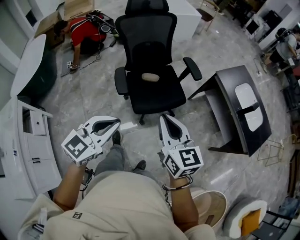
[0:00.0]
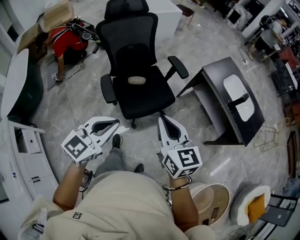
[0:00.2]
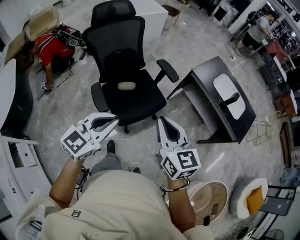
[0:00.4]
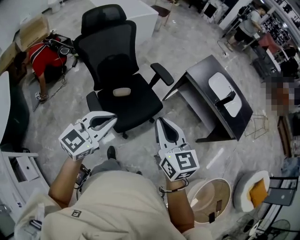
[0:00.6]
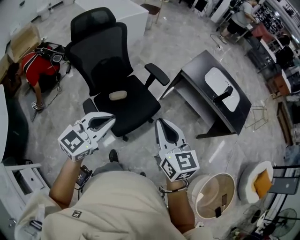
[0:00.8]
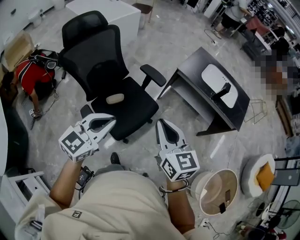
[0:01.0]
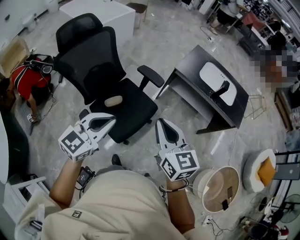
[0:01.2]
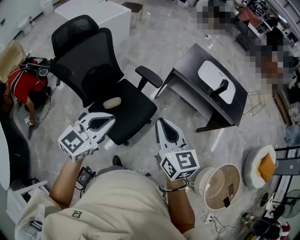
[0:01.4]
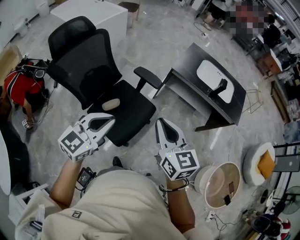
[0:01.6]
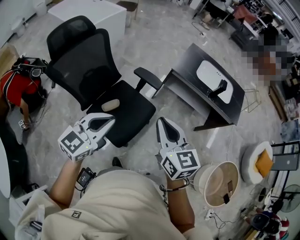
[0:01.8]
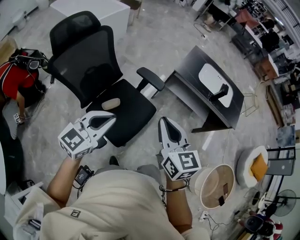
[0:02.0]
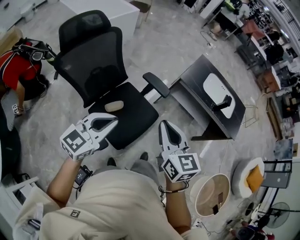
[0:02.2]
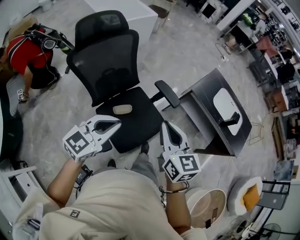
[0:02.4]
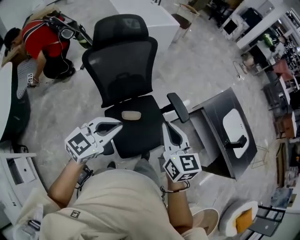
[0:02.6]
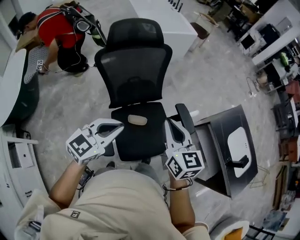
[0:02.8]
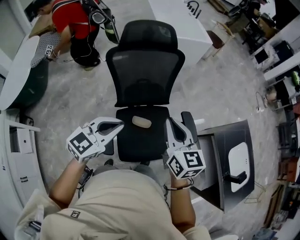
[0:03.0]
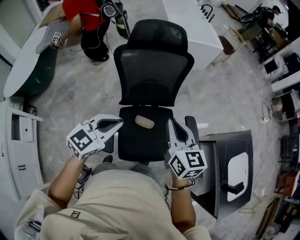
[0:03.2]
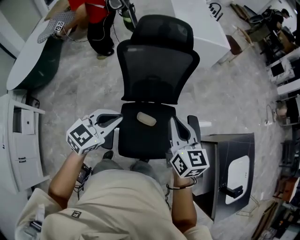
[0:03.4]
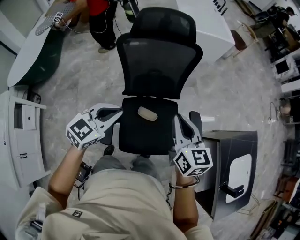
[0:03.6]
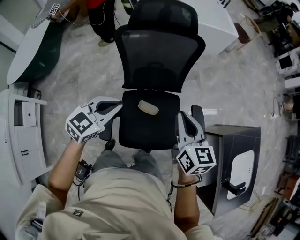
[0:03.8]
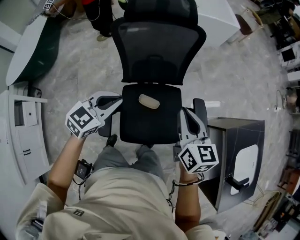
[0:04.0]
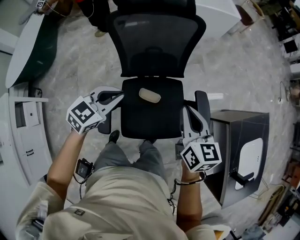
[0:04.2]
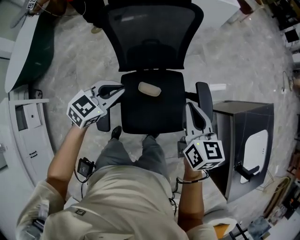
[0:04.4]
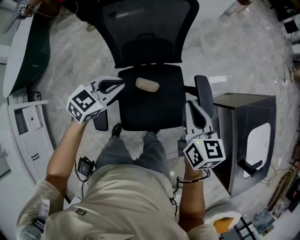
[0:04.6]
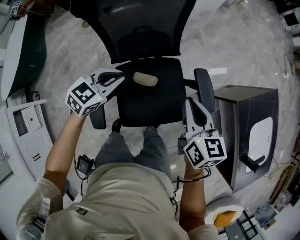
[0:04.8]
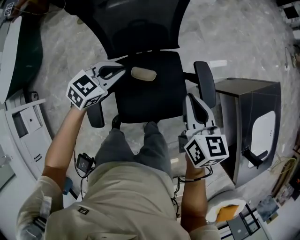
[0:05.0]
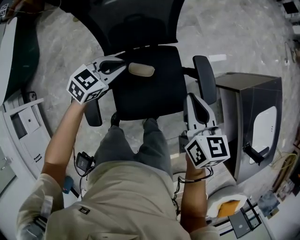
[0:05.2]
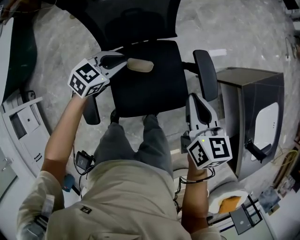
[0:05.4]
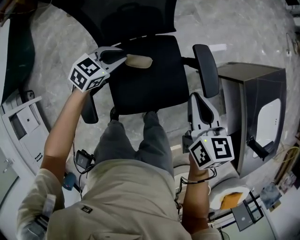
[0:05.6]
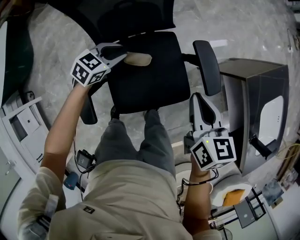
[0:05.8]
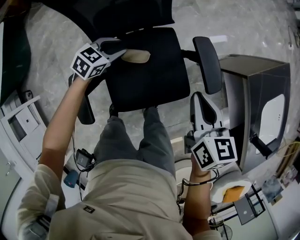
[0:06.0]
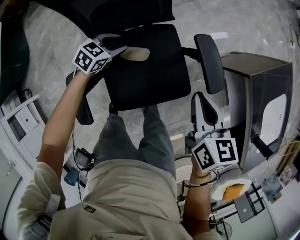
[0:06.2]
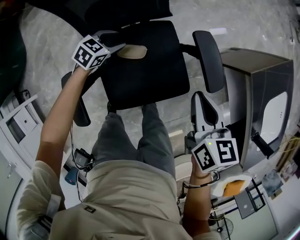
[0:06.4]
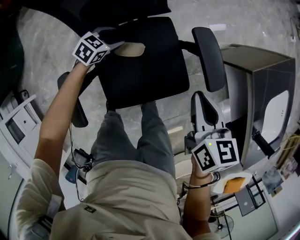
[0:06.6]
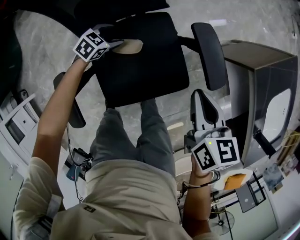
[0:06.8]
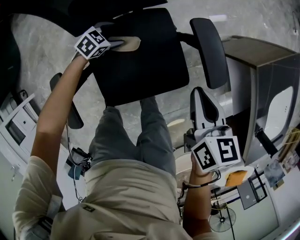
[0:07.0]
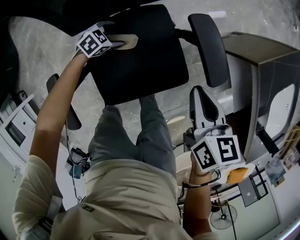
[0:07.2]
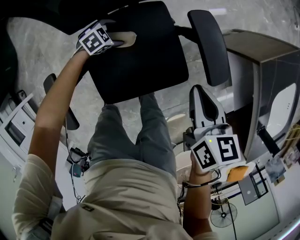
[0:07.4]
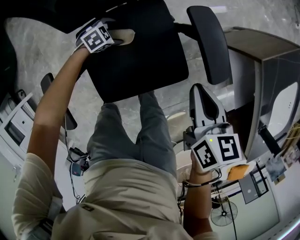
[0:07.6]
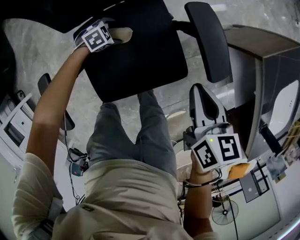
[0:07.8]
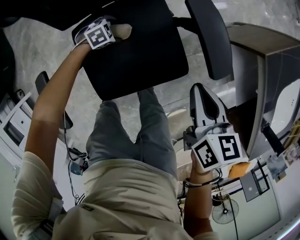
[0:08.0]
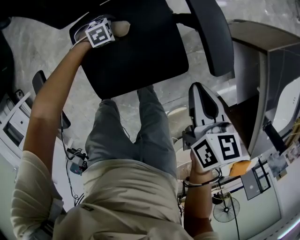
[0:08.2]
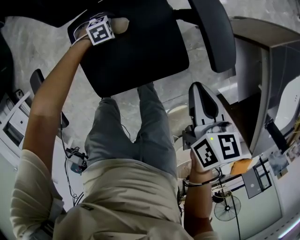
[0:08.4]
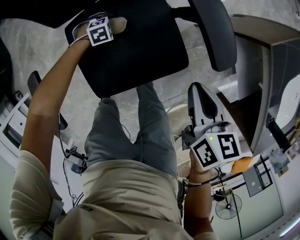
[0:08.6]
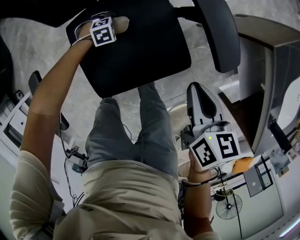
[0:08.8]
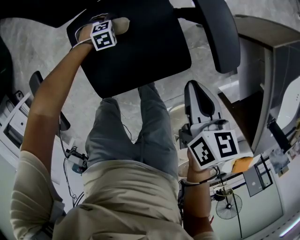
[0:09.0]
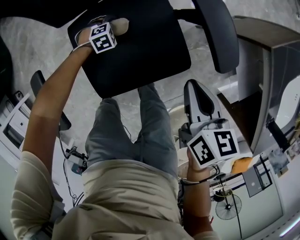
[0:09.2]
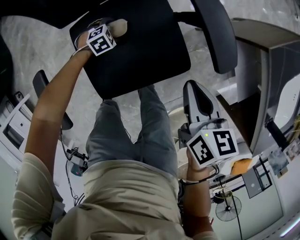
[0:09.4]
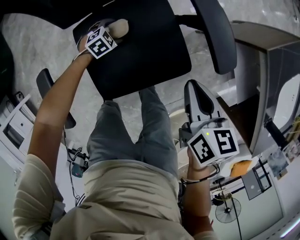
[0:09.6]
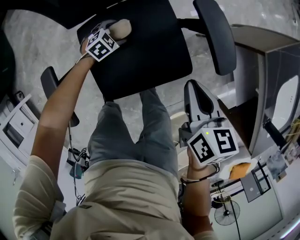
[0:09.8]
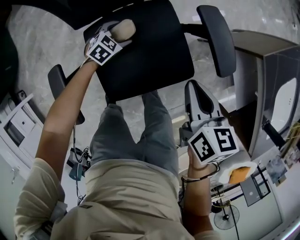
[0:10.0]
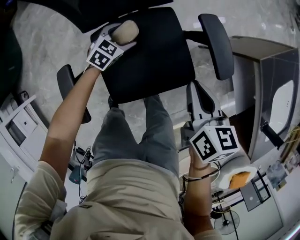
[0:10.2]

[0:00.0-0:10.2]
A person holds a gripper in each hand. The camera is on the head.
0:00.0 to 0:01.4: The right gripper shifts by about 15 cm, and rotates roughly 30 degrees; the left gripper changes place by some 25 cm, and turns by approximately 30 degrees.
0:01.4 to 0:03.0: The right gripper moves roughly 30 cm, and changes its angle by approximately 30 degrees. Meanwhile the left gripper changes place by about 20 cm, and swivels about 30 degrees.
0:03.0 to 0:04.4: The left gripper goes roughly 15 cm downward and forward, while the right gripper travels downward and to the right by some 15 cm.
0:04.4 to 0:05.8: The left gripper moves downward and forward, roughly 20 cm. Meanwhile the right gripper shifts roughly 15 cm downward and to the right.
0:05.8 to 0:07.2: The left gripper travels downward by roughly 20 cm, rotates roughly 20 degrees, and opens up. The right gripper shifts some 10 cm downward.
0:07.2 to 0:08.8: The left gripper goes approximately 10 cm downward, and turns by roughly 30 degrees; the right gripper heads downward, covering roughly 5 cm.
0:08.8 to 0:10.2: The left gripper shifts roughly 20 cm upward, and changes its angle by roughly 50 degrees, while the right gripper shifts about 10 cm upward.

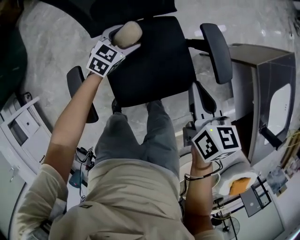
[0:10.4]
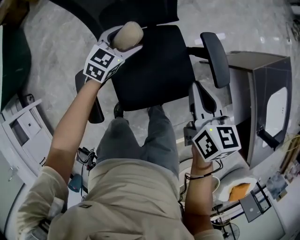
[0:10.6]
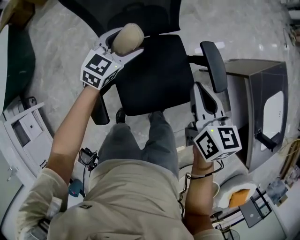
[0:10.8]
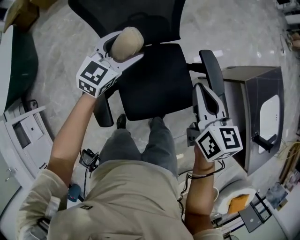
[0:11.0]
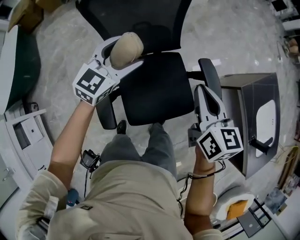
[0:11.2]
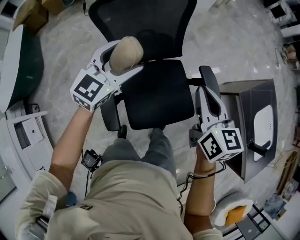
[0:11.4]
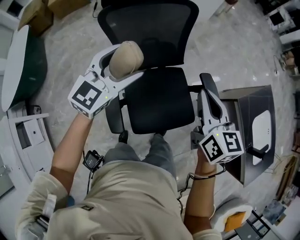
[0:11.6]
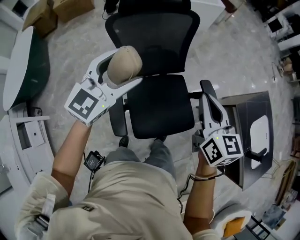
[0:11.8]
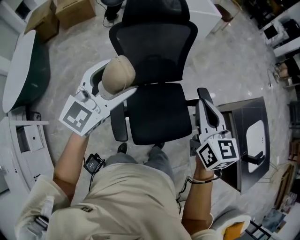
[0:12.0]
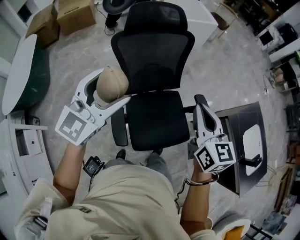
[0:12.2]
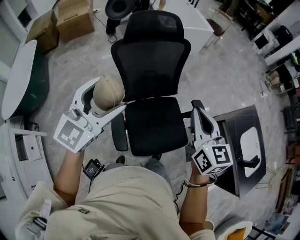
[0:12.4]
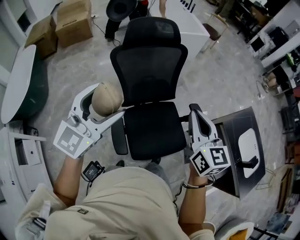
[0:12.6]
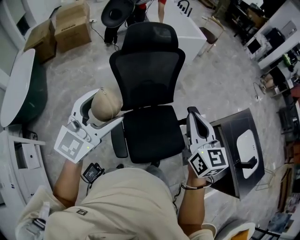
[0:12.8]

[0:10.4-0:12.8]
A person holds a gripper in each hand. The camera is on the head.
0:10.4 to 0:11.6: The right gripper travels upward and to the left by roughly 25 cm, and changes its angle by about 20 degrees. Meanwhile the left gripper travels upward by roughly 40 cm, and rotates roughly 30 degrees.
0:11.6 to 0:12.8: The left gripper heads backward, upward and to the left, covering about 20 cm; the right gripper moves upward, to the left and backward, approximately 15 cm.

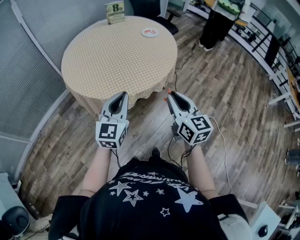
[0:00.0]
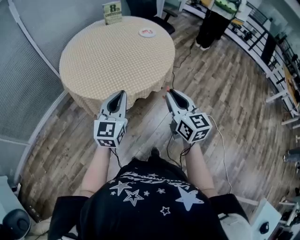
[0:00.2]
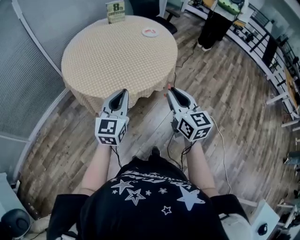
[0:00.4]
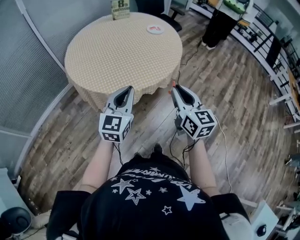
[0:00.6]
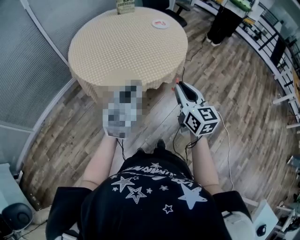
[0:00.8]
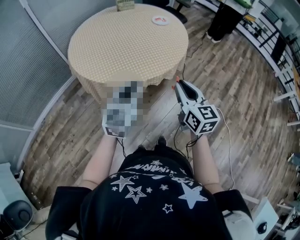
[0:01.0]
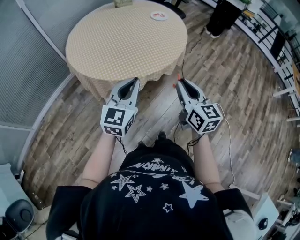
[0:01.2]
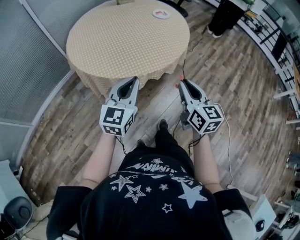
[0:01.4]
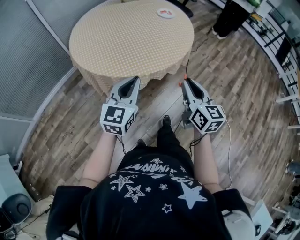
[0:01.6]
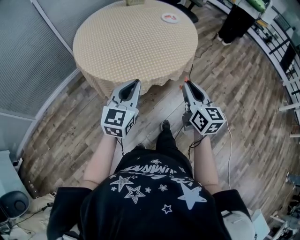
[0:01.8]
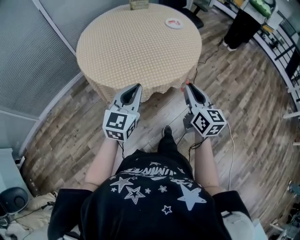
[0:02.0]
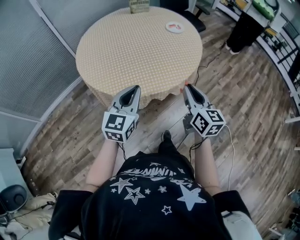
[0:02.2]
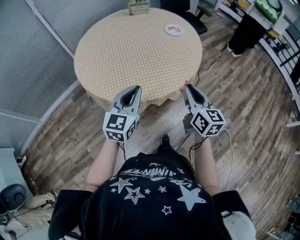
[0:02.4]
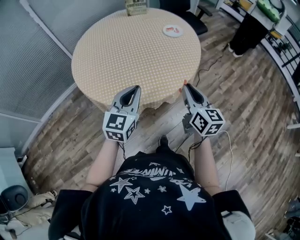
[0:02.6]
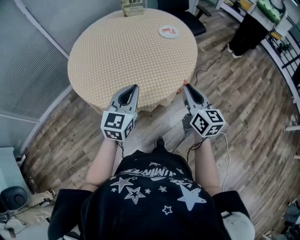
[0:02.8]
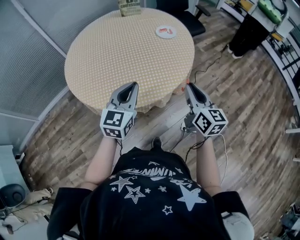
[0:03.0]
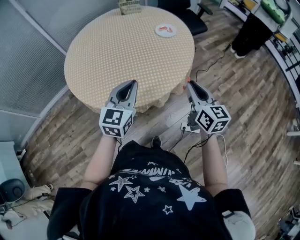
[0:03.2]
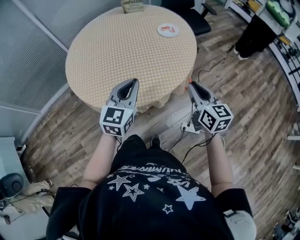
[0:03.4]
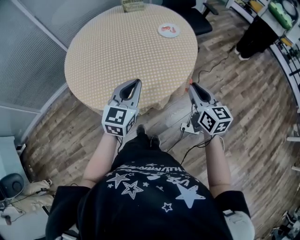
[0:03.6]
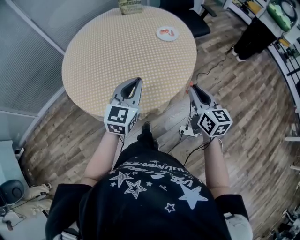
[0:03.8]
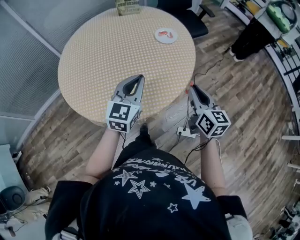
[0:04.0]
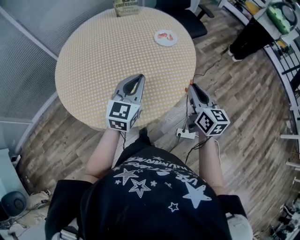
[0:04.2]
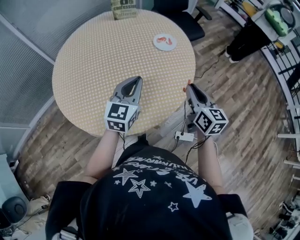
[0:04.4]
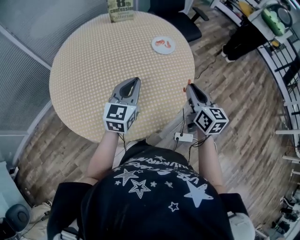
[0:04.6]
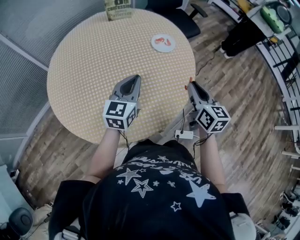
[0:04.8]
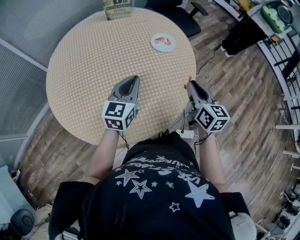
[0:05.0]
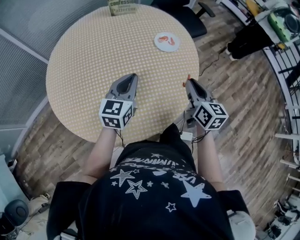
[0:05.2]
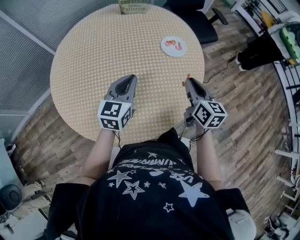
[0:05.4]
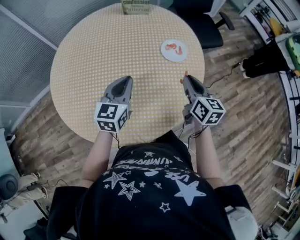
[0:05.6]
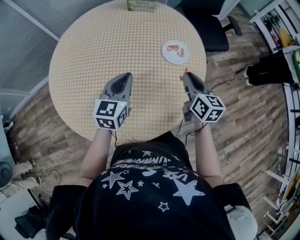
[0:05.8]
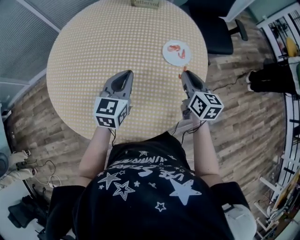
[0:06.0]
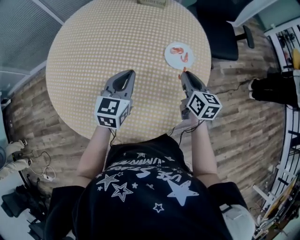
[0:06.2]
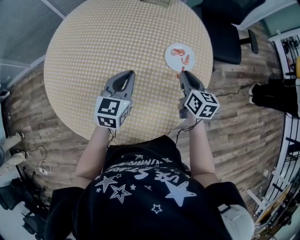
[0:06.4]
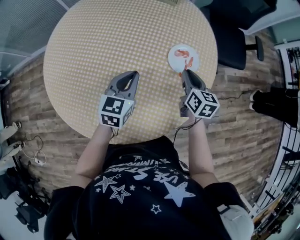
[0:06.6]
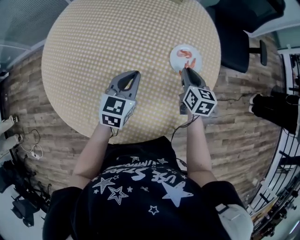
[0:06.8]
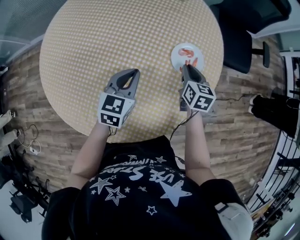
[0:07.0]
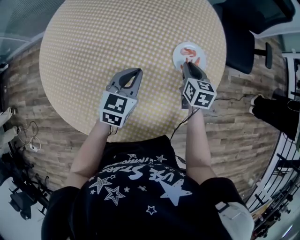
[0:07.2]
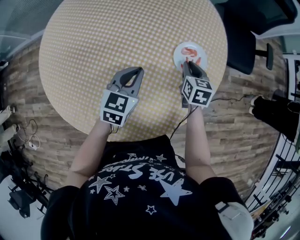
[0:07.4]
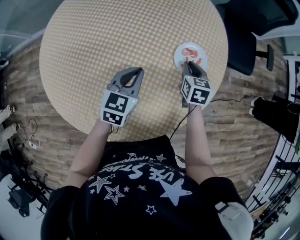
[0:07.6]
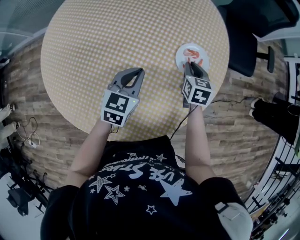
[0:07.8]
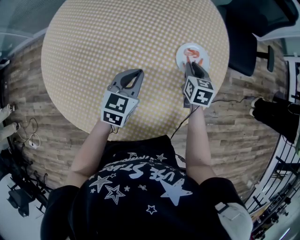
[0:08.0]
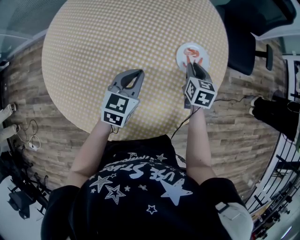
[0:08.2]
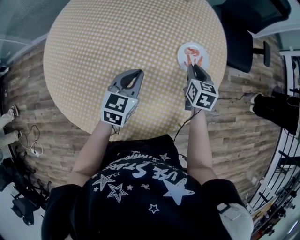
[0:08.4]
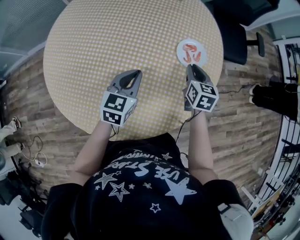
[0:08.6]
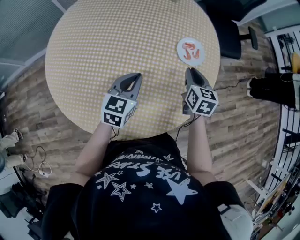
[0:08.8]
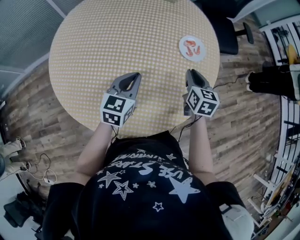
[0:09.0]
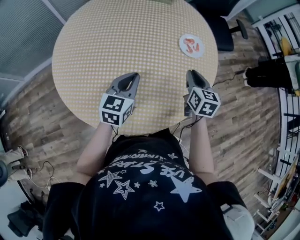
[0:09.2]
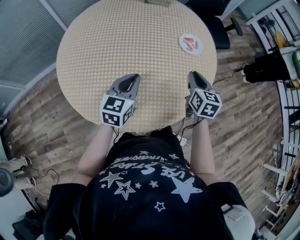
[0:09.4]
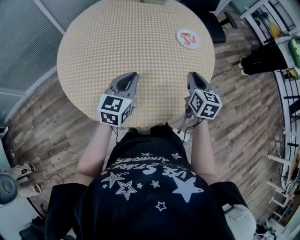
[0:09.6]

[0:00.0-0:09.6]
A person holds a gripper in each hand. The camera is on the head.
0:00.0 to 0:01.6: There are only small adjustments of the grippers.
0:01.6 to 0:03.2: Both grippers move forward and to the right, approximately 25 cm.
0:03.2 to 0:04.8: Both grippers travel together forward, roughly 20 cm.
0:04.8 to 0:06.4: The right gripper changes place by approximately 30 cm, and rotates about 30 degrees. The left gripper shifts by some 15 cm, and swivels approximately 30 degrees.
0:06.4 to 0:08.0: The left gripper heads downward, covering roughly 5 cm. Meanwhile the right gripper goes some 10 cm downward and forward, and changes its angle by some 20 degrees.
0:08.0 to 0:09.6: The right gripper travels backward and upward by some 30 cm, and rotates about 30 degrees; the left gripper shifts roughly 20 cm backward, to the left and upward, and changes its angle by approximately 20 degrees.

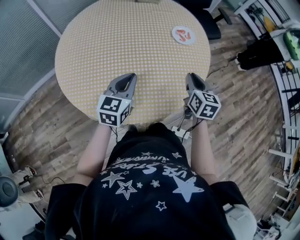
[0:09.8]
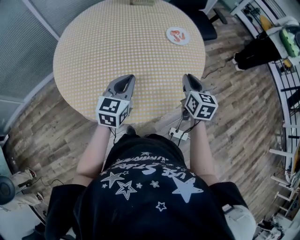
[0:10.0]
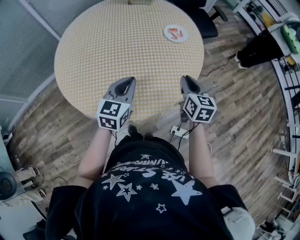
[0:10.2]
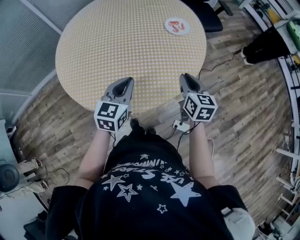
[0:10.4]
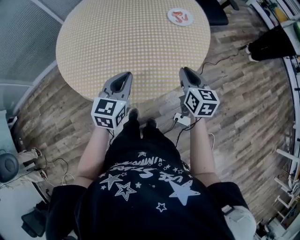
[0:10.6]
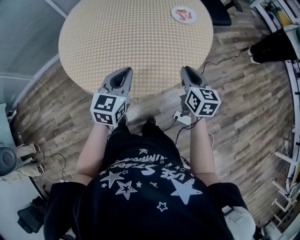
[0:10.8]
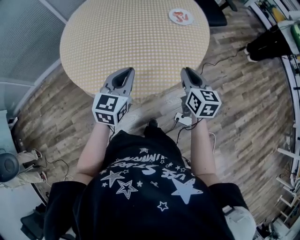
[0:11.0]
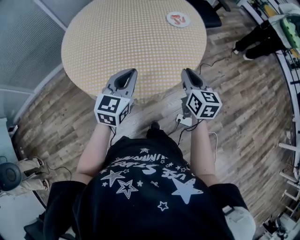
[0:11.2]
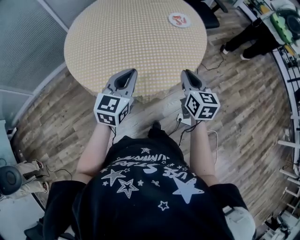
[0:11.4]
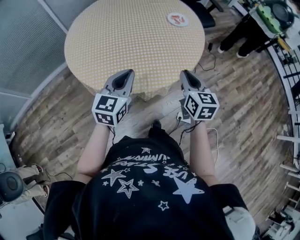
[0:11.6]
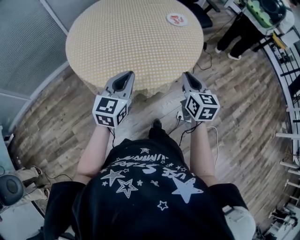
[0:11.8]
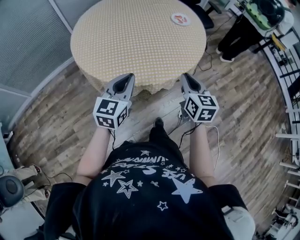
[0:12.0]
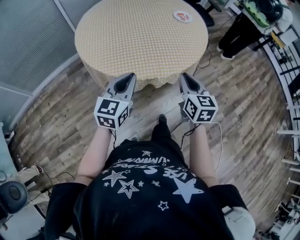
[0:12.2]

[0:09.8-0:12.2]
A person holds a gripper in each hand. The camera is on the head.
0:09.8 to 0:11.0: The right gripper moves backward, about 10 cm; the left gripper moves backward and to the right, some 10 cm.
0:11.0 to 0:12.2: The two grippers go roughly 20 cm backward and to the left.
